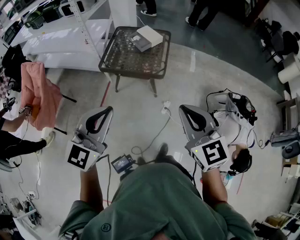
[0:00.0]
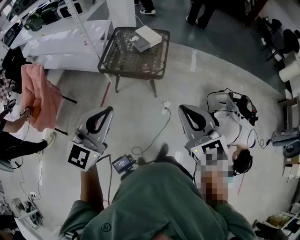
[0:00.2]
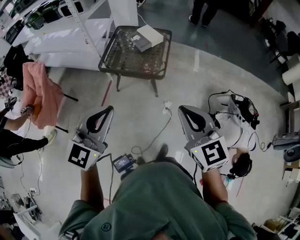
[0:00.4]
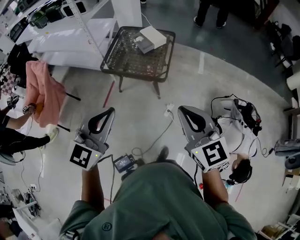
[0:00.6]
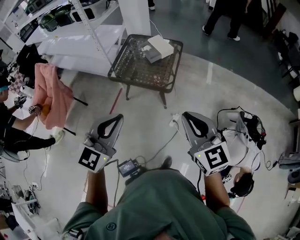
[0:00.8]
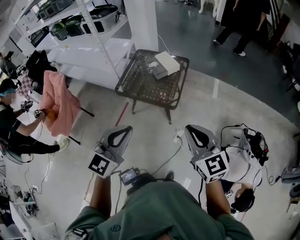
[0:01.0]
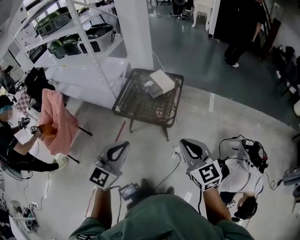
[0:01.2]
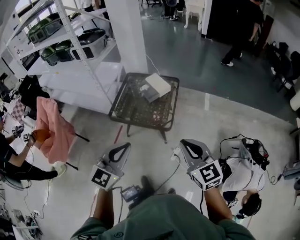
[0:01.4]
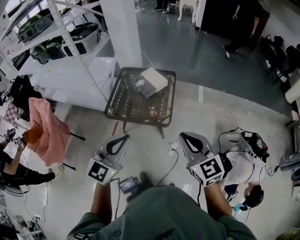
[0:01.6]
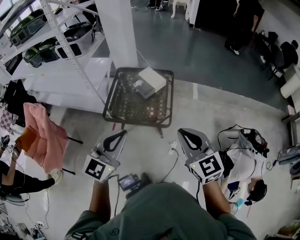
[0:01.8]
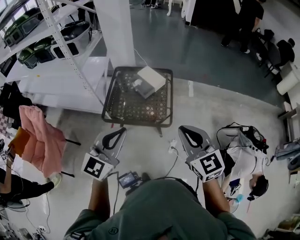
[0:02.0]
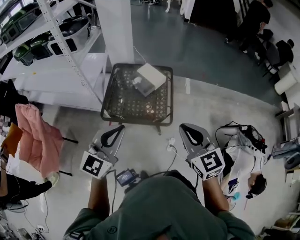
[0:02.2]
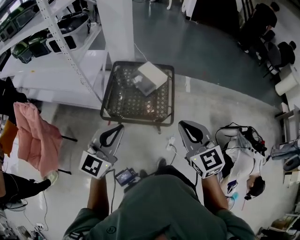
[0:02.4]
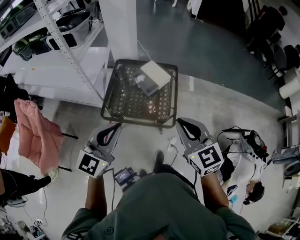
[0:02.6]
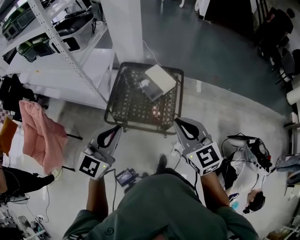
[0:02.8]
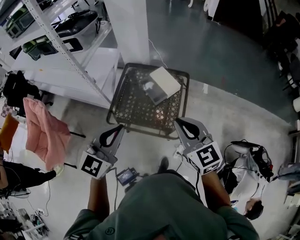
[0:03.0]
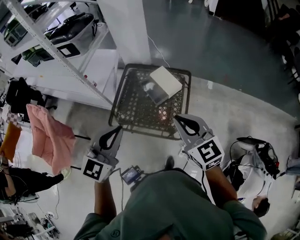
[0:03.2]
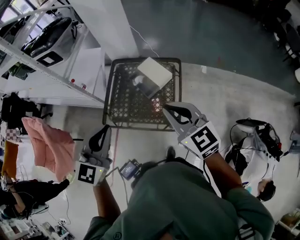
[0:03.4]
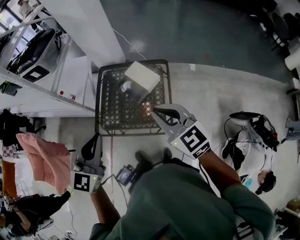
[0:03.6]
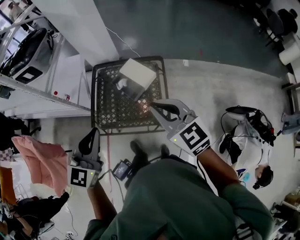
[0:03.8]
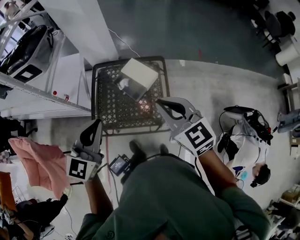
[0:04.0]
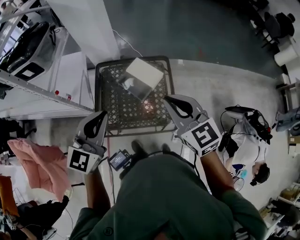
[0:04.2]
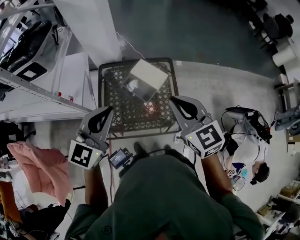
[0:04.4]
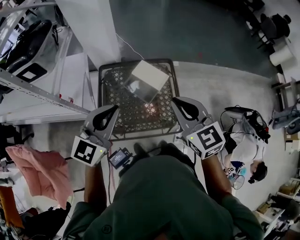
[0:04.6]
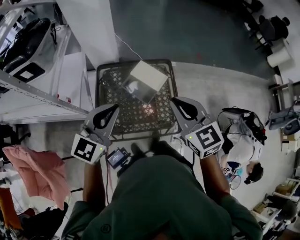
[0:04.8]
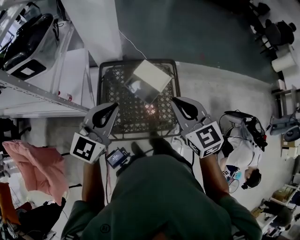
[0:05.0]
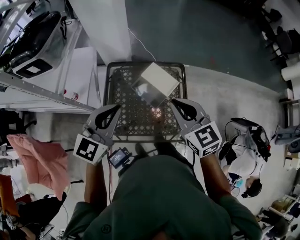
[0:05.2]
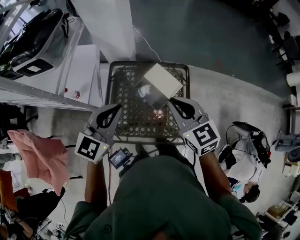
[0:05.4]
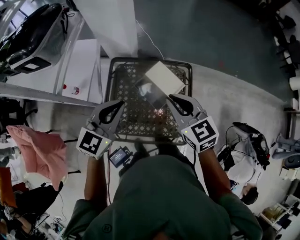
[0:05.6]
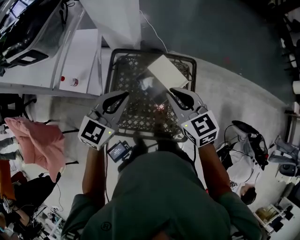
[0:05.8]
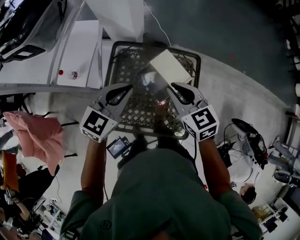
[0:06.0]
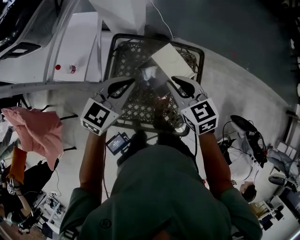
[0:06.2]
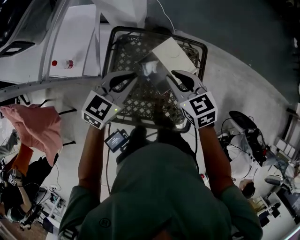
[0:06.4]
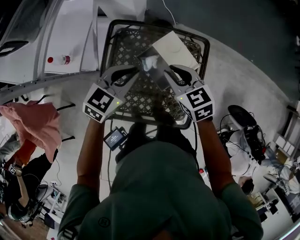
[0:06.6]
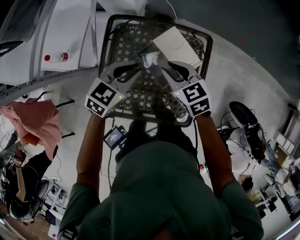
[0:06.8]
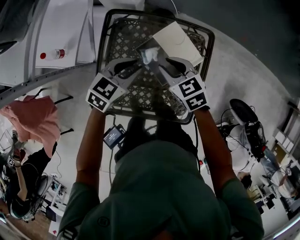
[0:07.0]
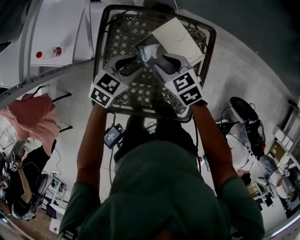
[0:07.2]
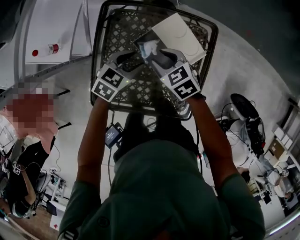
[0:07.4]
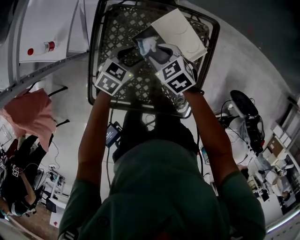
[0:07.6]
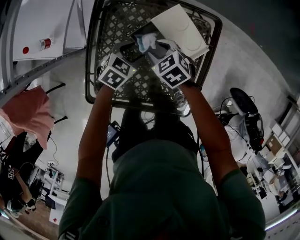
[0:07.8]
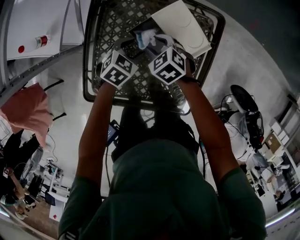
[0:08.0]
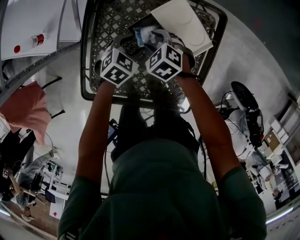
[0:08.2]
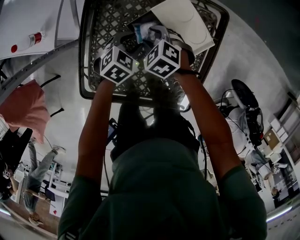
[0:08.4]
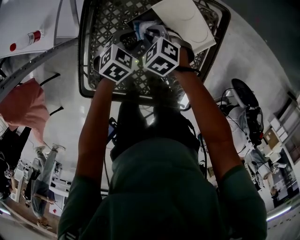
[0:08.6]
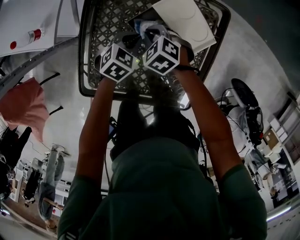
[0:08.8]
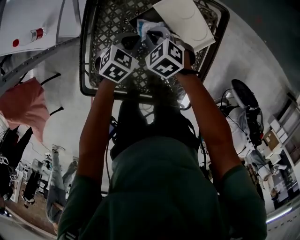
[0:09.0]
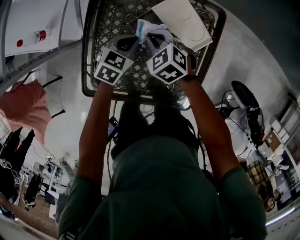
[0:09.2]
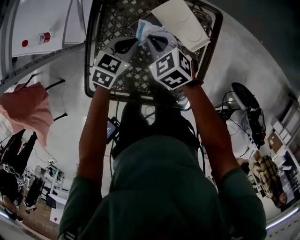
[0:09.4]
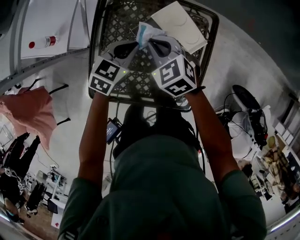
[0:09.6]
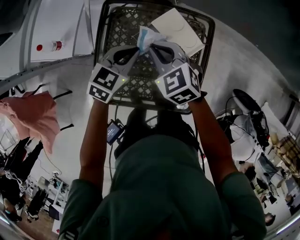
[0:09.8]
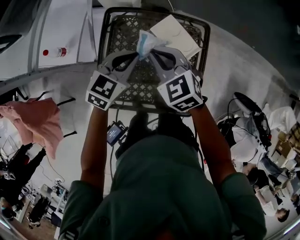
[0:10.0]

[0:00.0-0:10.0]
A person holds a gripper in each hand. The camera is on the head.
0:00.0 to 0:01.4: The left gripper moves forward and to the right, some 20 cm; the right gripper heads forward, covering approximately 20 cm.
0:01.4 to 0:02.8: The two grippers go about 30 cm forward and to the left.
0:02.8 to 0:04.2: Both grippers move forward, some 20 cm.
0:04.2 to 0:05.8: The right gripper moves forward, to the left and downward, some 25 cm, while the left gripper goes roughly 20 cm forward and downward.
0:05.8 to 0:07.2: The two grippers go about 25 cm downward. The right gripper rotates some 20 degrees, and opens. The left gripper changes its angle by roughly 30 degrees, and opens.
0:07.2 to 0:08.6: Both grippers travel together downward, some 15 cm. The right gripper swivels some 30 degrees.
0:08.6 to 0:10.0: The two grippers go approximately 25 cm upward. The left gripper turns by some 20 degrees, and closes its fingers, while the right gripper turns by some 30 degrees.

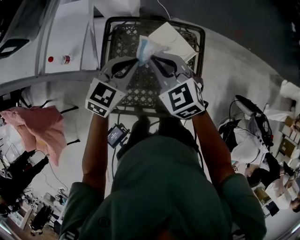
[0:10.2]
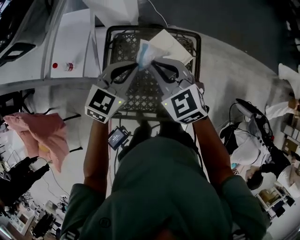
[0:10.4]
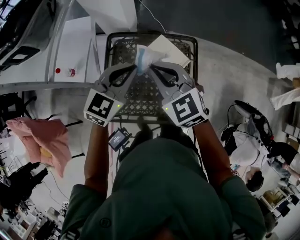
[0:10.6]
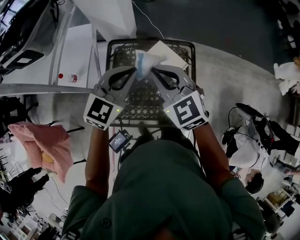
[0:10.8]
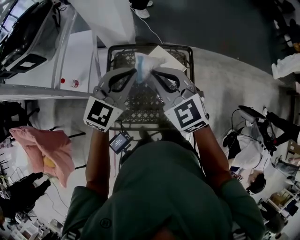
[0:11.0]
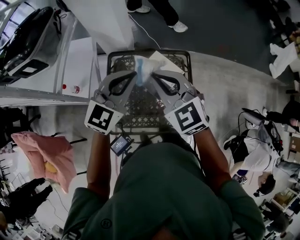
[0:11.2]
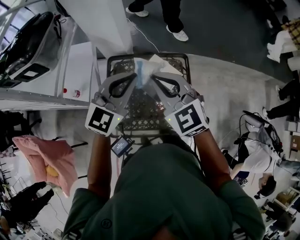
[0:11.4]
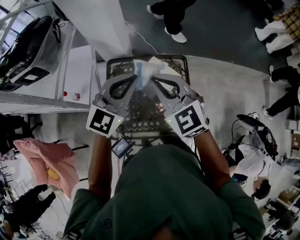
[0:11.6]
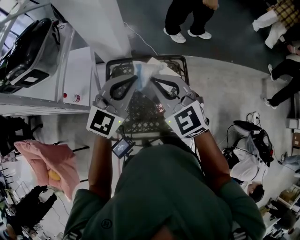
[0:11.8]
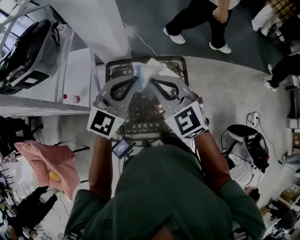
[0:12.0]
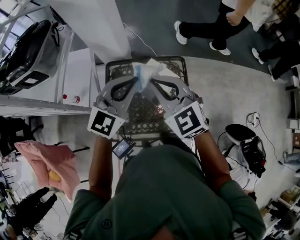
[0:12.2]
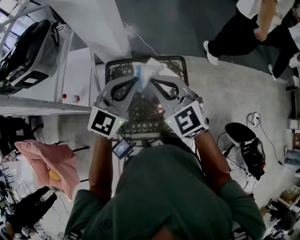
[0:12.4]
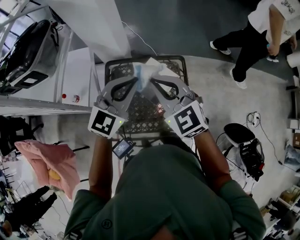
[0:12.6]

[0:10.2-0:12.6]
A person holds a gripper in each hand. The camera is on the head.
0:10.2 to 0:11.4: The two grippers go some 50 cm upward and to the right. The left gripper turns by approximately 20 degrees, while the right gripper turns by roughly 20 degrees.
0:11.4 to 0:12.6: The grippers stay close to where they were, moving slightly.

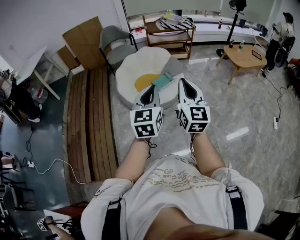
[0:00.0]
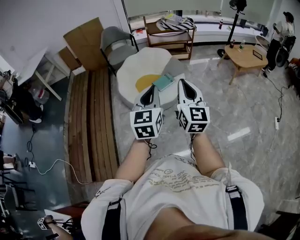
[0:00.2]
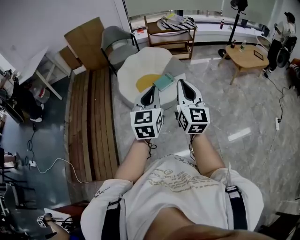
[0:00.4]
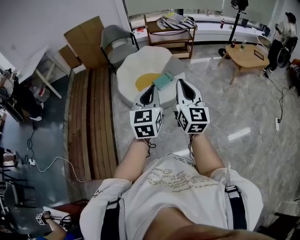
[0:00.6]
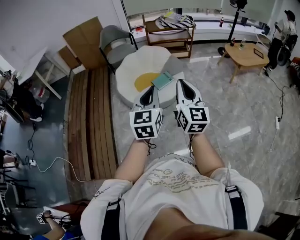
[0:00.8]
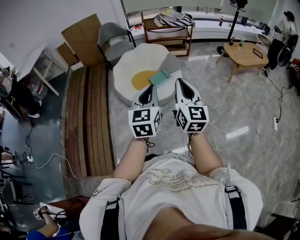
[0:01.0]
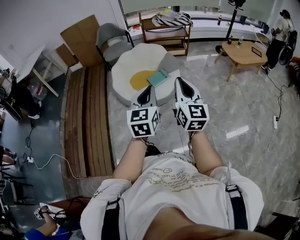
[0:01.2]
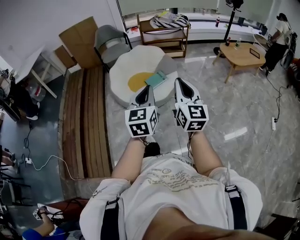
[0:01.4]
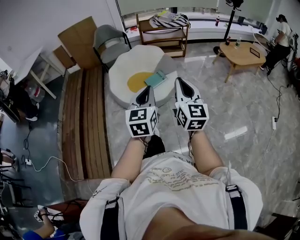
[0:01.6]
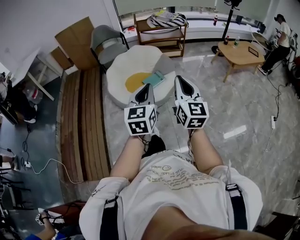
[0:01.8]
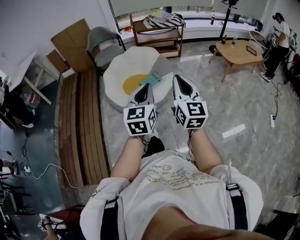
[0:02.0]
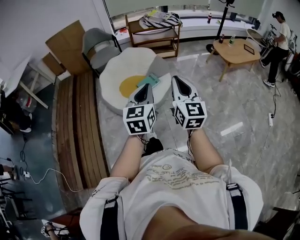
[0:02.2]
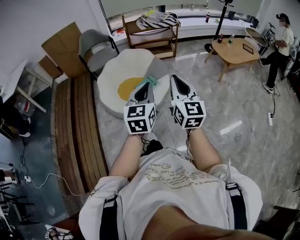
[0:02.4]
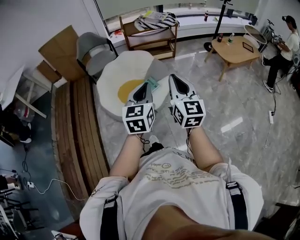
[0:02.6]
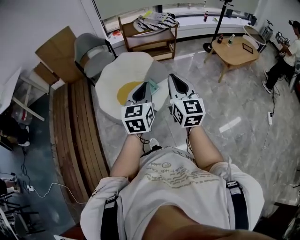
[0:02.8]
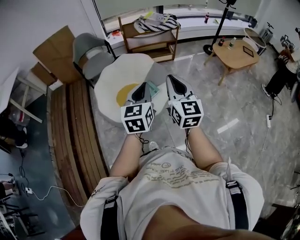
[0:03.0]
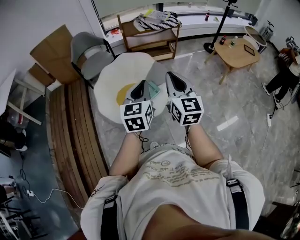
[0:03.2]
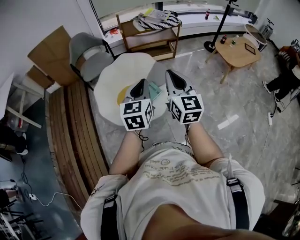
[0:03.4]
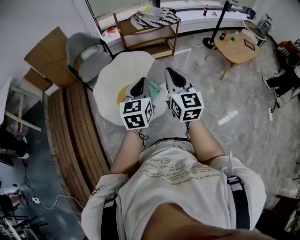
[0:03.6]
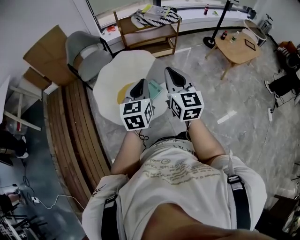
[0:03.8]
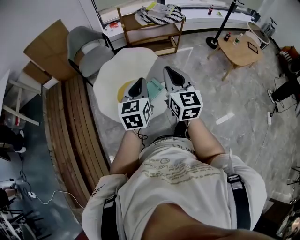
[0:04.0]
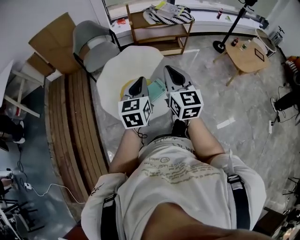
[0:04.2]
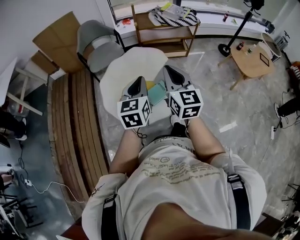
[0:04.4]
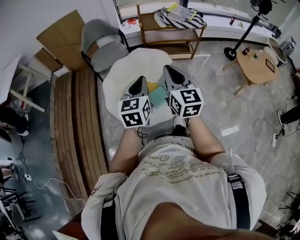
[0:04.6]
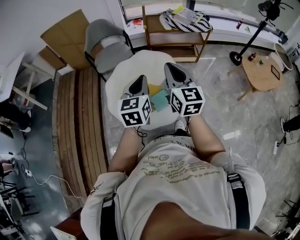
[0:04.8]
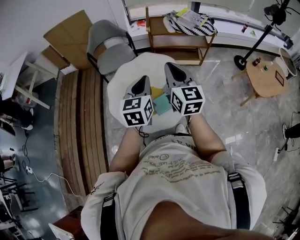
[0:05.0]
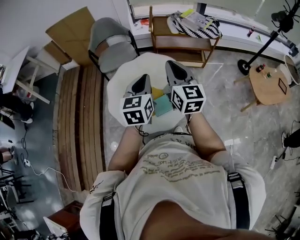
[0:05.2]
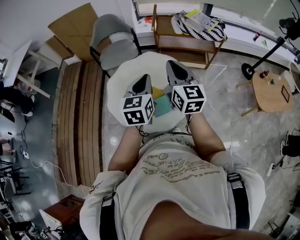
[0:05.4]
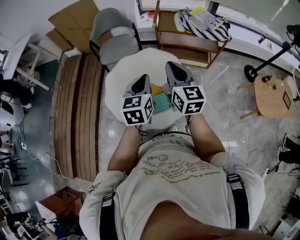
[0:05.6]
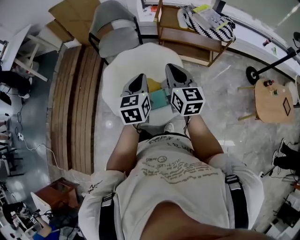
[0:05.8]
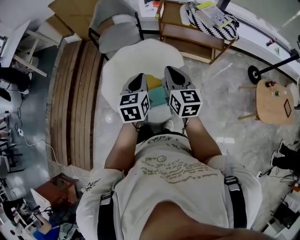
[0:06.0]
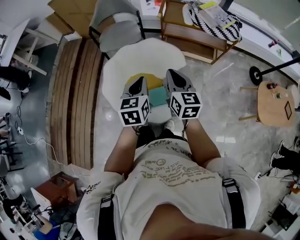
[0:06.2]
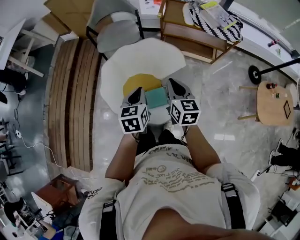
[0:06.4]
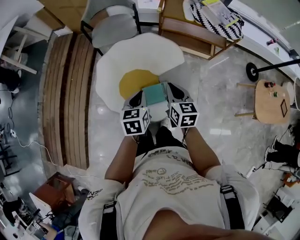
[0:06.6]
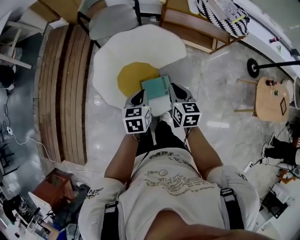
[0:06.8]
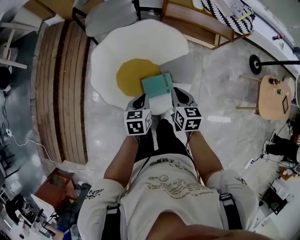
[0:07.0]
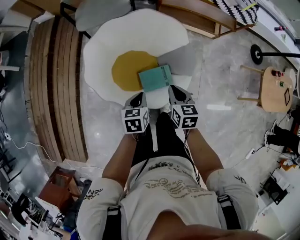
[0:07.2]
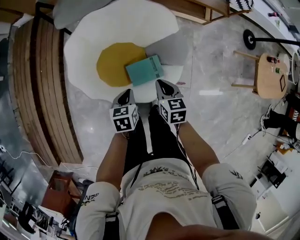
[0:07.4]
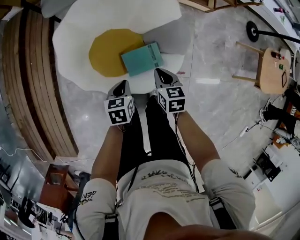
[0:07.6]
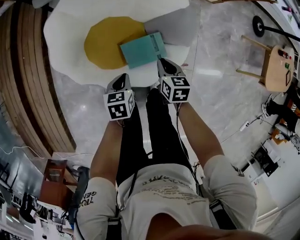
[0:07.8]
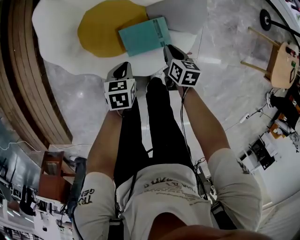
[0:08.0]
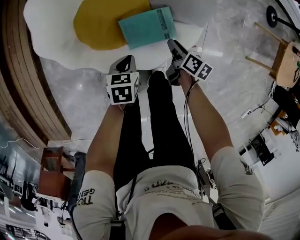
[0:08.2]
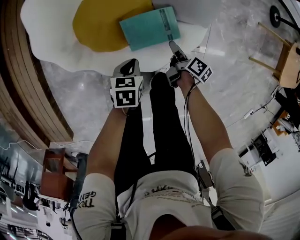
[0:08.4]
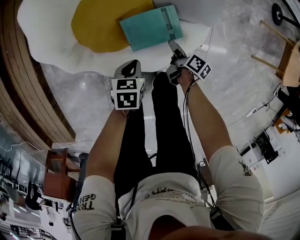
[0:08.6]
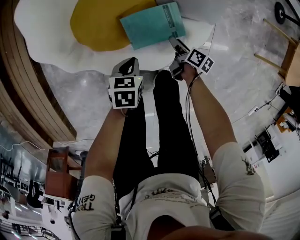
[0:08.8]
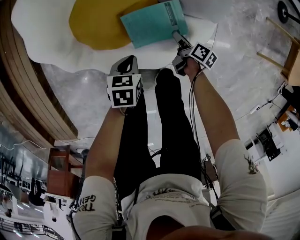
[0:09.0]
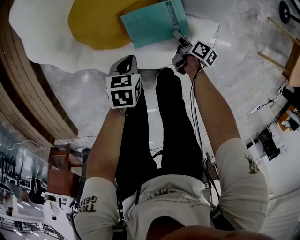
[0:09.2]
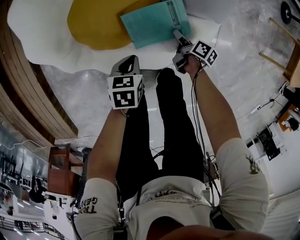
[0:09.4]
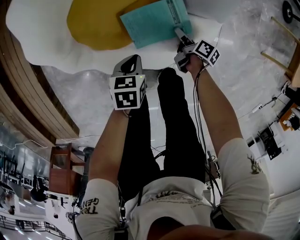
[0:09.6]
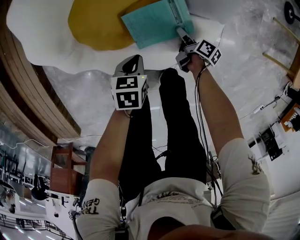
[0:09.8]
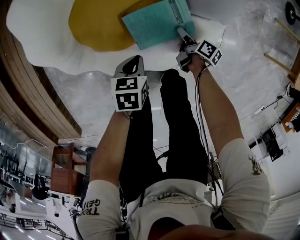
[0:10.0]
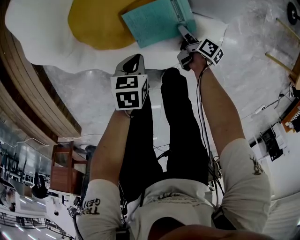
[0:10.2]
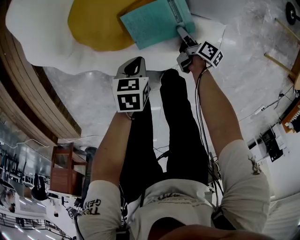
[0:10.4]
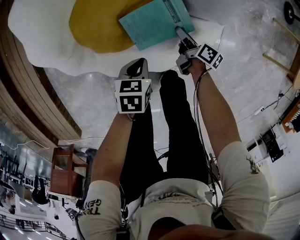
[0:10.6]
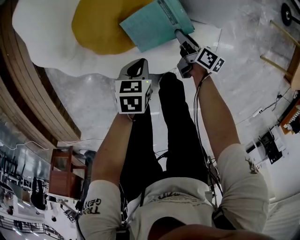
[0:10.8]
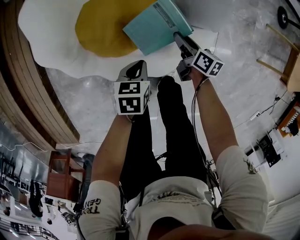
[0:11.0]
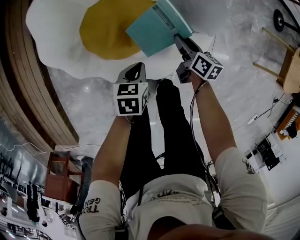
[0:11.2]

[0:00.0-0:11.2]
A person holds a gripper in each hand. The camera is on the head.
0:00.0 to 0:01.6: The two grippers go approximately 10 cm to the right.
0:01.6 to 0:03.2: Both grippers travel together forward, approximately 30 cm.
0:03.2 to 0:04.8: The left gripper moves forward and to the left, about 20 cm. Meanwhile the right gripper is displaced forward by approximately 20 cm.
0:04.8 to 0:06.4: Both grippers travel together downward and forward, some 20 cm. The left gripper swivels about 30 degrees. The right gripper turns by roughly 30 degrees.
0:06.4 to 0:08.0: The grippers both shift downward by approximately 50 cm. The left gripper swivels some 30 degrees. The right gripper tilts its fingers some 30 degrees downward.
0:08.0 to 0:09.6: The right gripper is displaced downward by some 20 cm, twists approximately 40 degrees clockwise, seen from behind, and opens up. The left gripper travels downward by about 10 cm.
0:09.6 to 0:11.2: The left gripper goes approximately 5 cm upward; the right gripper is displaced upward and forward by some 15 cm, and swivels approximately 30 degrees.
